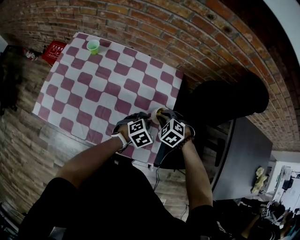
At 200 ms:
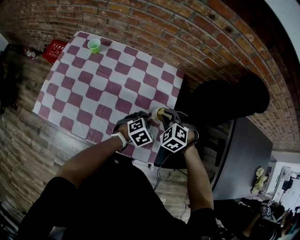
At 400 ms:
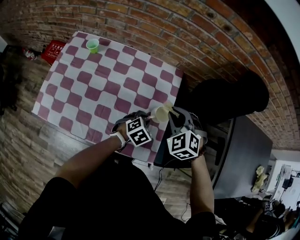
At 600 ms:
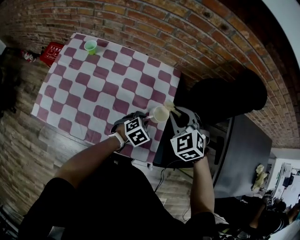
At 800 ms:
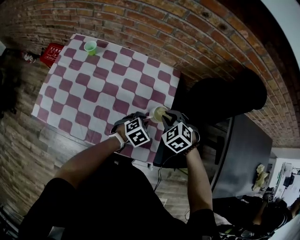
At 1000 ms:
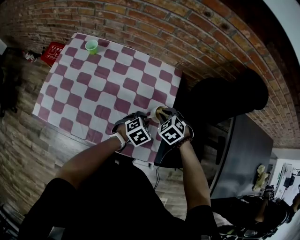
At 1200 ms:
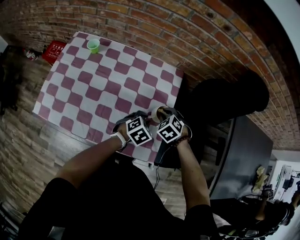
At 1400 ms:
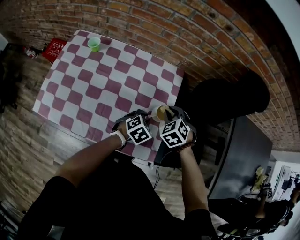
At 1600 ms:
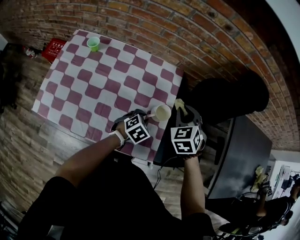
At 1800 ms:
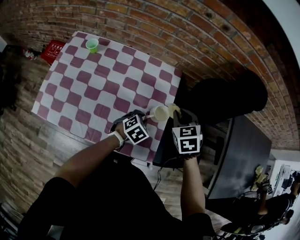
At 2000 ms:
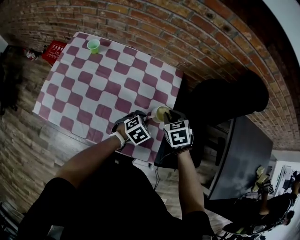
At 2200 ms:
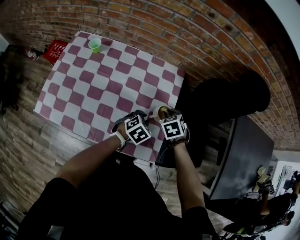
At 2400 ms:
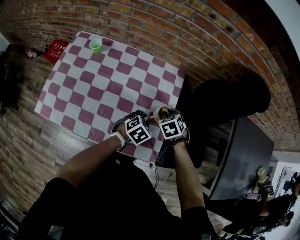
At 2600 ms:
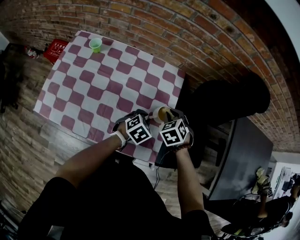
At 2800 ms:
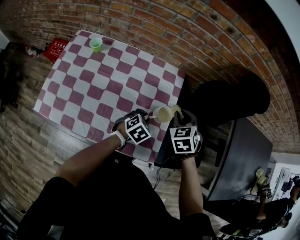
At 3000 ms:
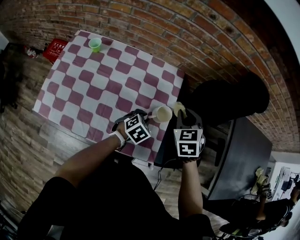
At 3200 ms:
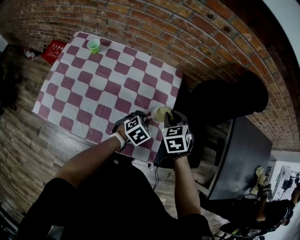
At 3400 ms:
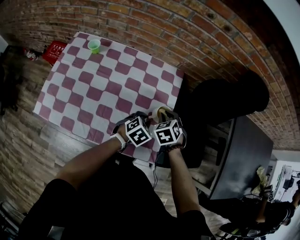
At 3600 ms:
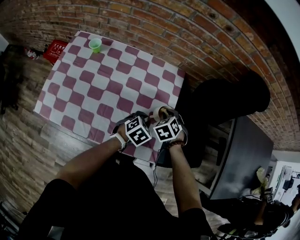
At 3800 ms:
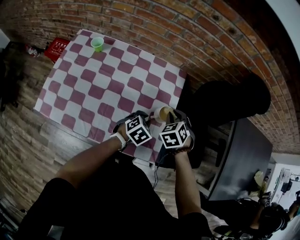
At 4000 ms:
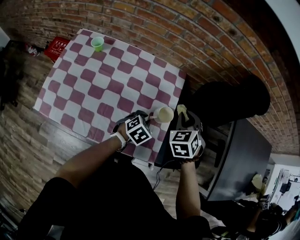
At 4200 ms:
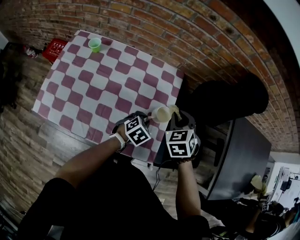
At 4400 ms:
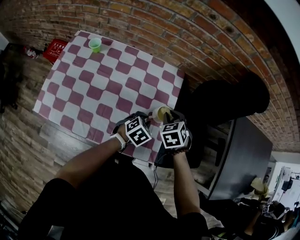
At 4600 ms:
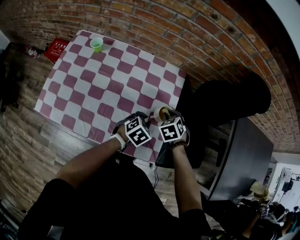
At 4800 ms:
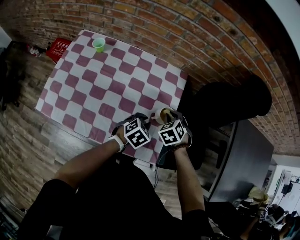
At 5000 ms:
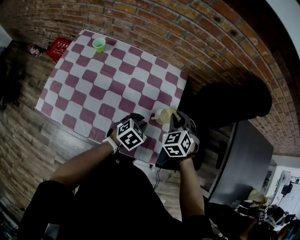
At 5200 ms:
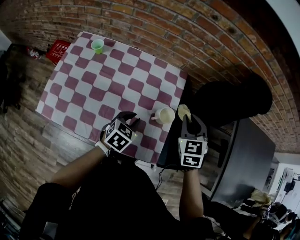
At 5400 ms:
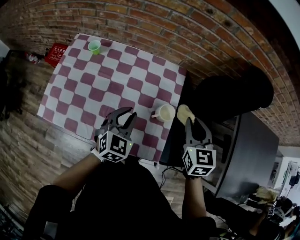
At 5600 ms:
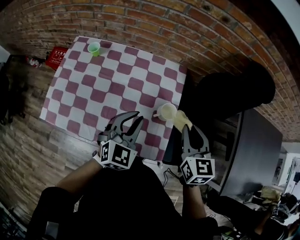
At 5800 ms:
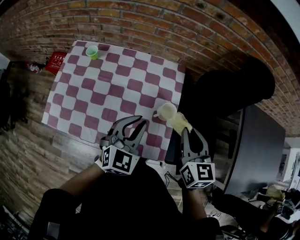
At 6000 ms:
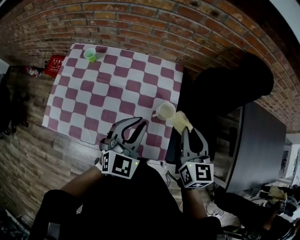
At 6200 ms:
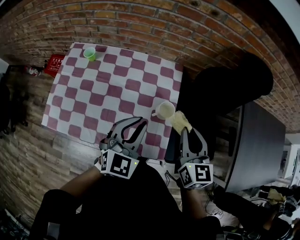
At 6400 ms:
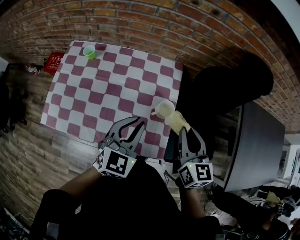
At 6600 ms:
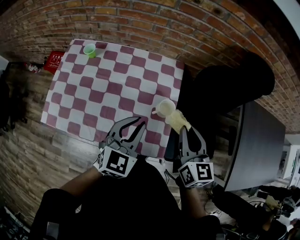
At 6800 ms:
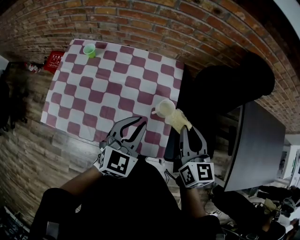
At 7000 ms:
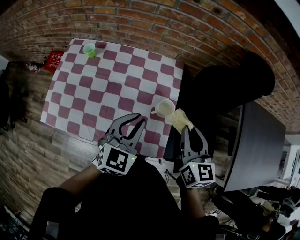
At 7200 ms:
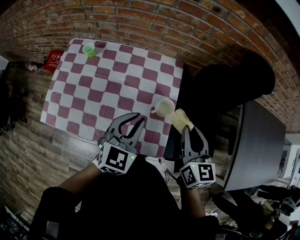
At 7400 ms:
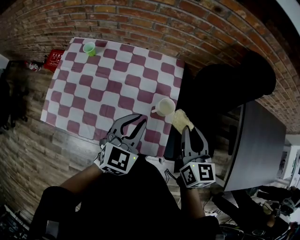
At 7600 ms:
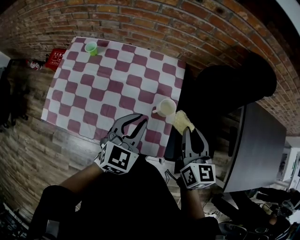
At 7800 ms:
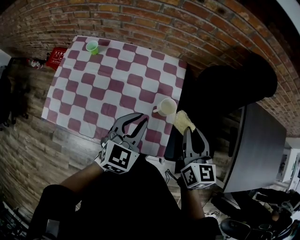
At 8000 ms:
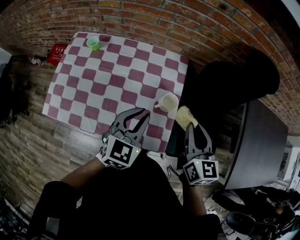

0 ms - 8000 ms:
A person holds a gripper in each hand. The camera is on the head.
0 ms - 1600 ms: The right gripper swings up and down, some 15 cm each way, with 2 reversals, and changes its angle by about 40 degrees.
1600 ms - 3200 ms: The right gripper goes up and down, approximately 15 cm each way, reversing 2 times.
3200 ms - 4800 ms: The right gripper goes up and down, some 15 cm each way, reversing 2 times.
4800 ms - 6400 ms: The right gripper travels upward and backward by roughly 20 cm, and angles its fingers upward, by some 40 degrees, while the left gripper travels upward by approximately 20 cm, and points its fingers some 30 degrees further upward.
6400 ms - 8000 ms: The grippers make only small movements.

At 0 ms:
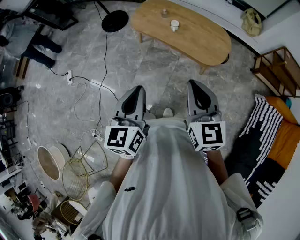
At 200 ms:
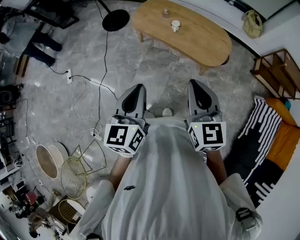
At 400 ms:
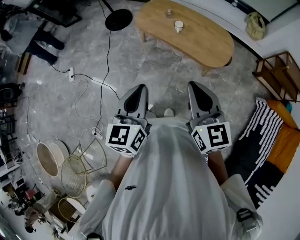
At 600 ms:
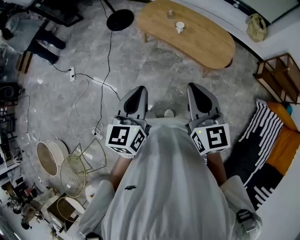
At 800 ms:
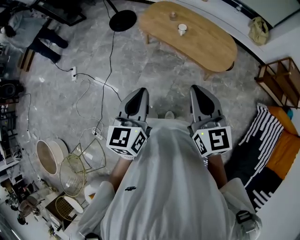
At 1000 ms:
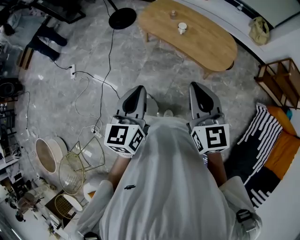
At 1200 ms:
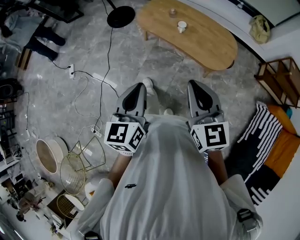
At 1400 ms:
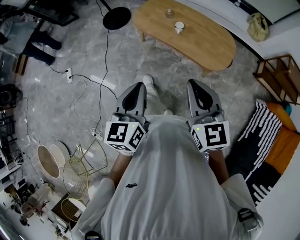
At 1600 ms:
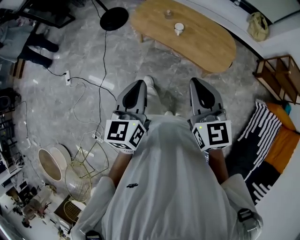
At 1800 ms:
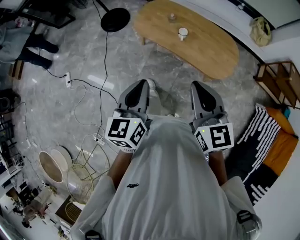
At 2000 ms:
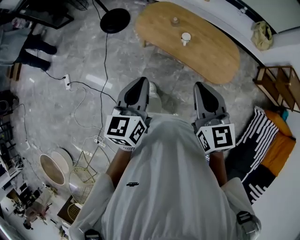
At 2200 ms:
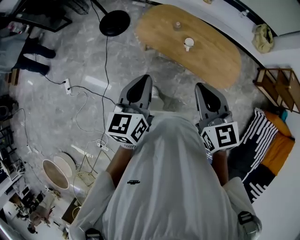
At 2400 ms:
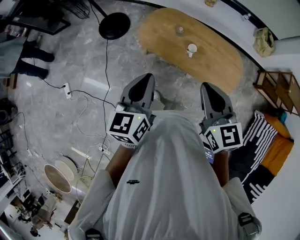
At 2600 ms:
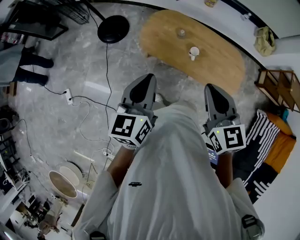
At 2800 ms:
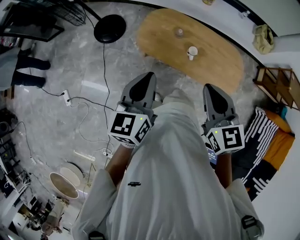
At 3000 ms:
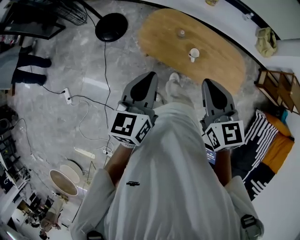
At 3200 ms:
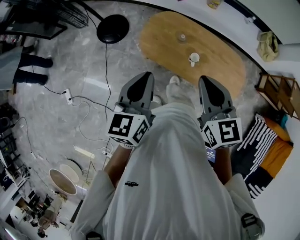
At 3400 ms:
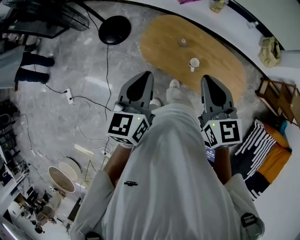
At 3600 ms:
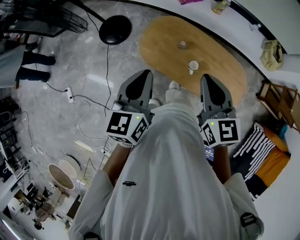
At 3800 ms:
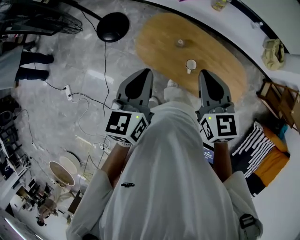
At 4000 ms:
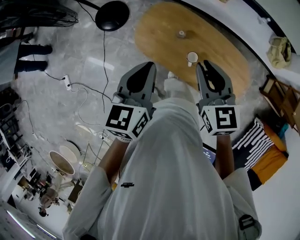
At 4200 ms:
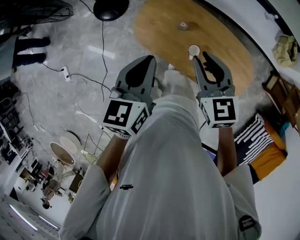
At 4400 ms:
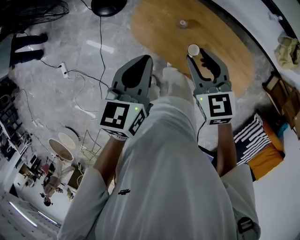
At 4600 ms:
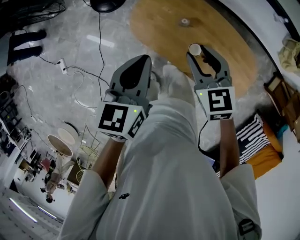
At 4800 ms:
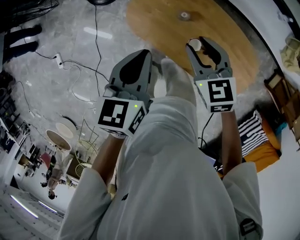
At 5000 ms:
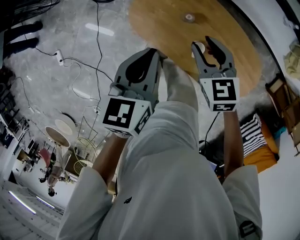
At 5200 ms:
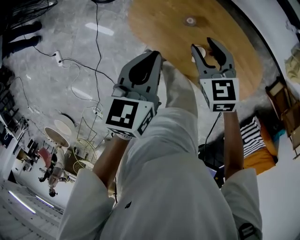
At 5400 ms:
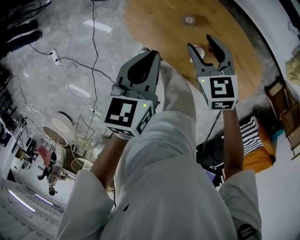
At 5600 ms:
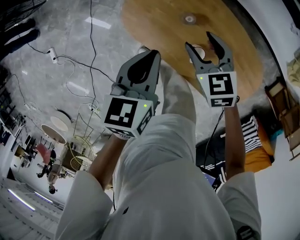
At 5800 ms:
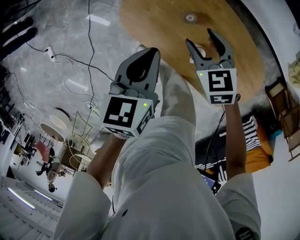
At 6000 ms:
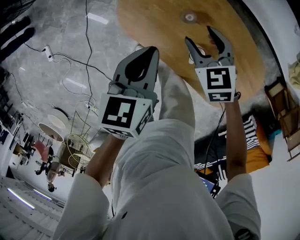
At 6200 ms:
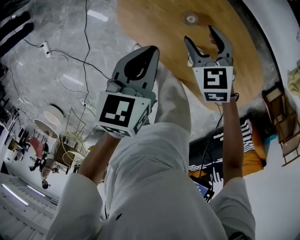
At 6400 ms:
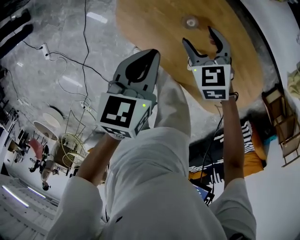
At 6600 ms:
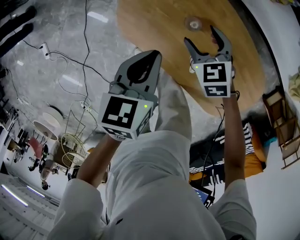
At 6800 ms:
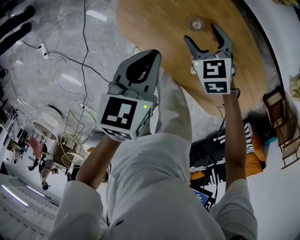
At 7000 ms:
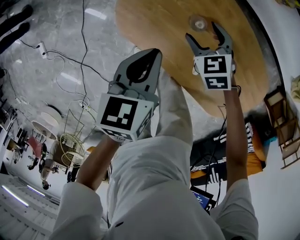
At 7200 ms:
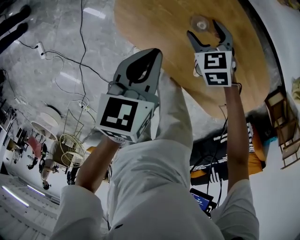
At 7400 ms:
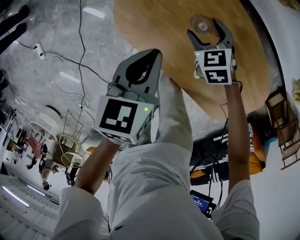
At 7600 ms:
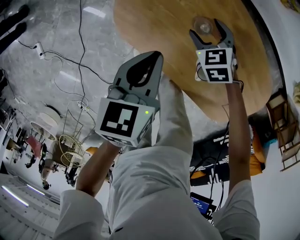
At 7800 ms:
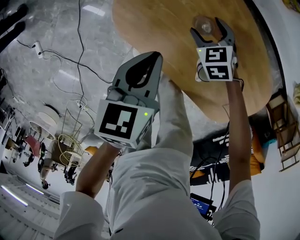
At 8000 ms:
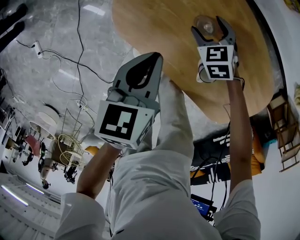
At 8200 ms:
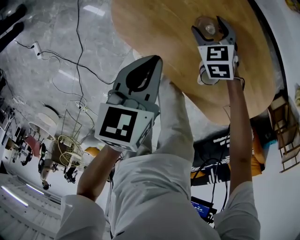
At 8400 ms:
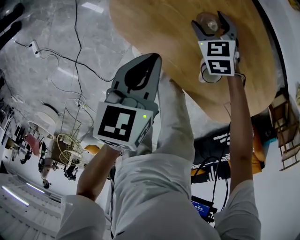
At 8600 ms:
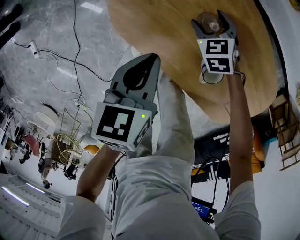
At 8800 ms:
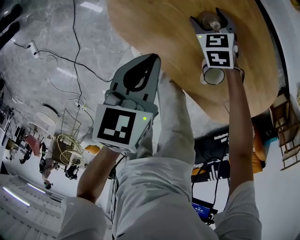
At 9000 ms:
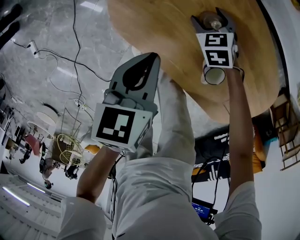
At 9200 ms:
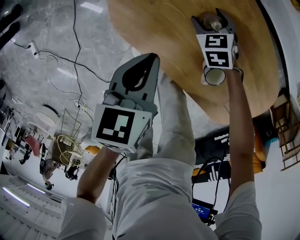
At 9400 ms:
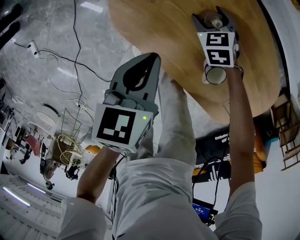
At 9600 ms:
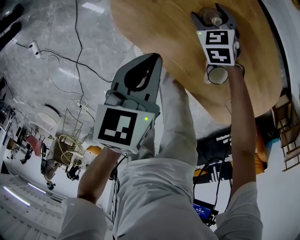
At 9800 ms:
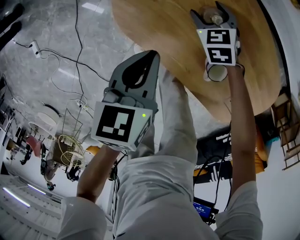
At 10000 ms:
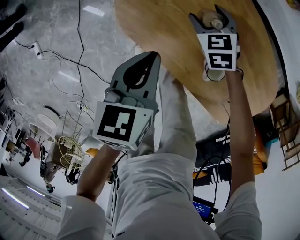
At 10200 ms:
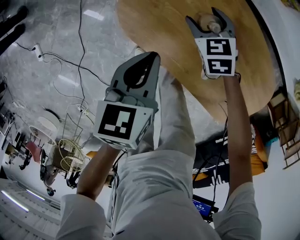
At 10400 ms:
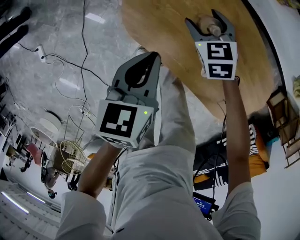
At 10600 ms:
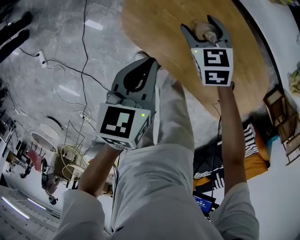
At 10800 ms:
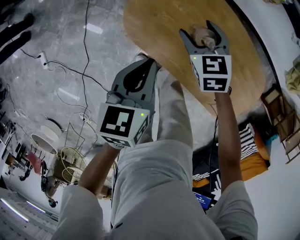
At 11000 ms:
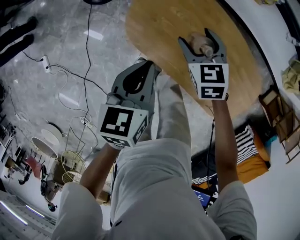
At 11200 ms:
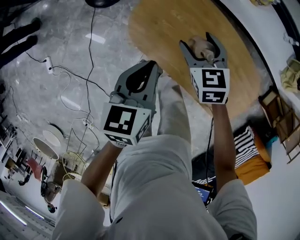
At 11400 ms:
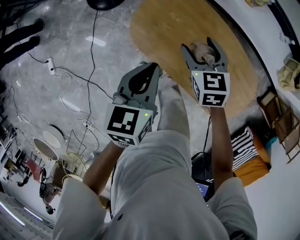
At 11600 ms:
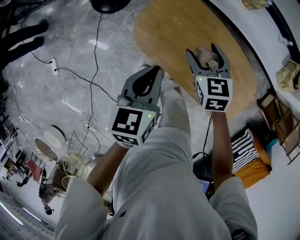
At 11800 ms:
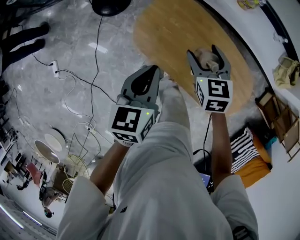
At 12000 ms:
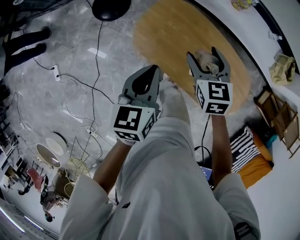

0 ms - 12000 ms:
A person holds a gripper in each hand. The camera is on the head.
0 ms - 1600 ms: Both grippers move forward, roughly 10 cm.
1600 ms - 3000 ms: Both grippers travel together forward, roughly 30 cm.
3000 ms - 4400 ms: The right gripper is displaced forward and downward by roughly 25 cm, and opens its fingers. The left gripper travels forward, to the right and downward by about 20 cm.
4400 ms - 6000 ms: Both grippers travel together downward and forward, roughly 25 cm. The right gripper opens.
6000 ms - 7600 ms: The left gripper heads downward, covering about 10 cm. The right gripper travels downward by roughly 20 cm.
7600 ms - 9000 ms: The right gripper moves downward, roughly 5 cm.
9000 ms - 10400 ms: The left gripper shifts roughly 5 cm upward. Meanwhile the right gripper heads upward, covering roughly 15 cm.
10400 ms - 12000 ms: The grippers both shift upward by roughly 25 cm.

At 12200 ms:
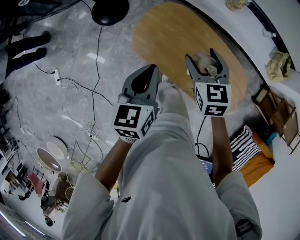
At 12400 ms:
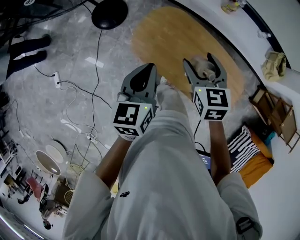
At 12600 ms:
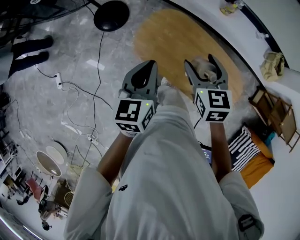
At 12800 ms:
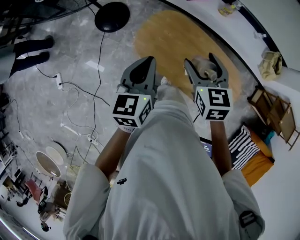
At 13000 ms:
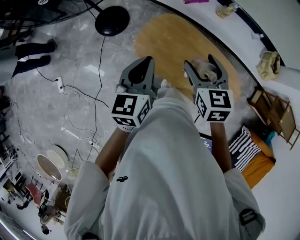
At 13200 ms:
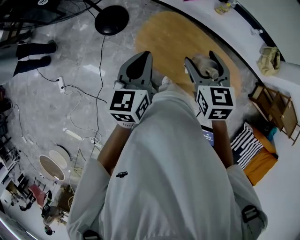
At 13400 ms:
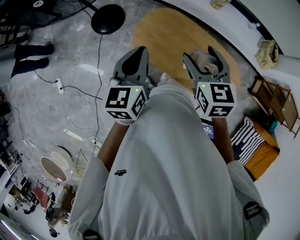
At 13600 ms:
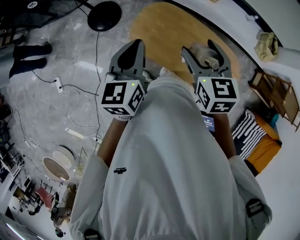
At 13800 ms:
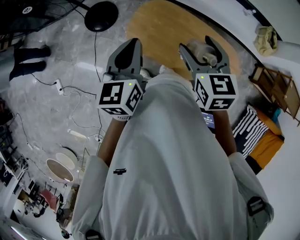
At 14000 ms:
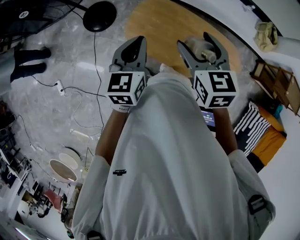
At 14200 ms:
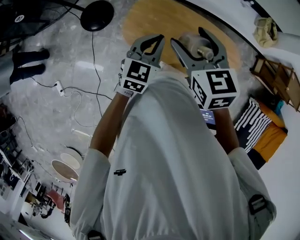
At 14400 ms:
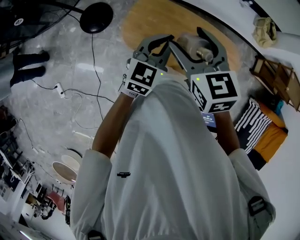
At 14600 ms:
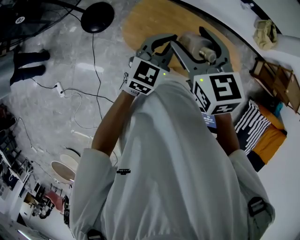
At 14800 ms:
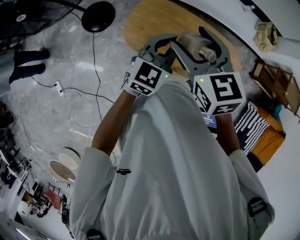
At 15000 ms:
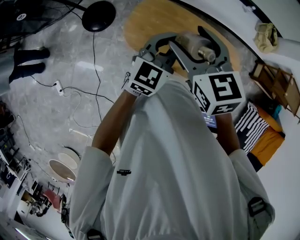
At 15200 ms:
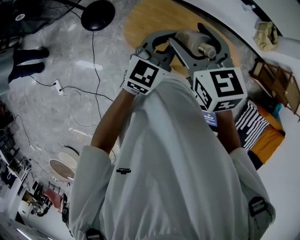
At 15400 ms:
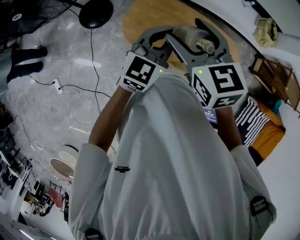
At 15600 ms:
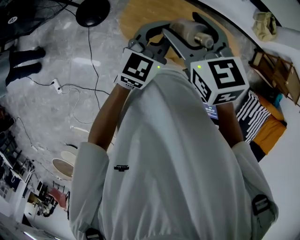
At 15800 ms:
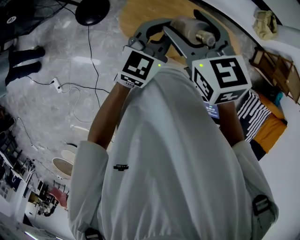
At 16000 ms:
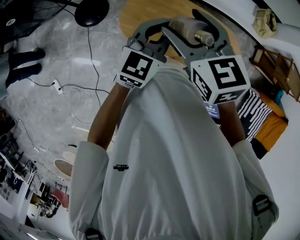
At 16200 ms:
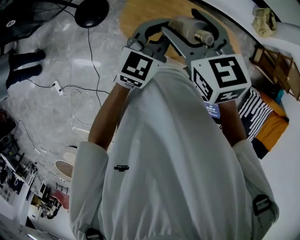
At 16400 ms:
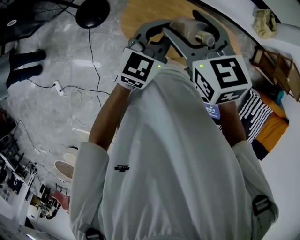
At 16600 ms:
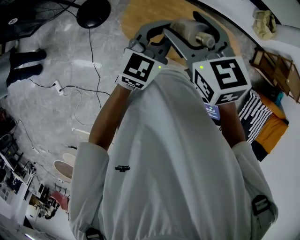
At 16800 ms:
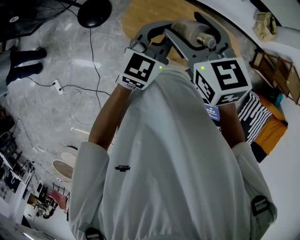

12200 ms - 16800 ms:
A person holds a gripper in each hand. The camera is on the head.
12200 ms - 13800 ms: The right gripper heads upward and backward, covering roughly 15 cm. The left gripper moves upward, about 10 cm.
13800 ms - 15200 ms: The left gripper goes roughly 15 cm to the right, and swivels some 30 degrees. The right gripper moves approximately 5 cm.
15200 ms - 16800 ms: The grippers make only small movements.
